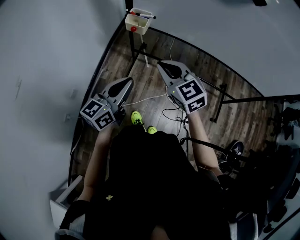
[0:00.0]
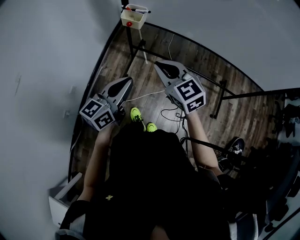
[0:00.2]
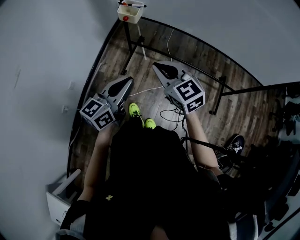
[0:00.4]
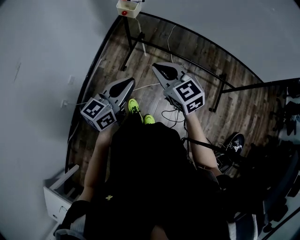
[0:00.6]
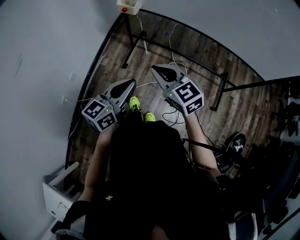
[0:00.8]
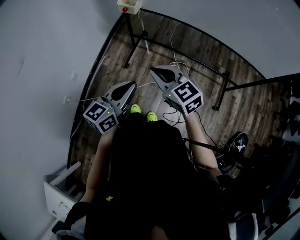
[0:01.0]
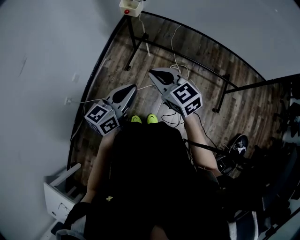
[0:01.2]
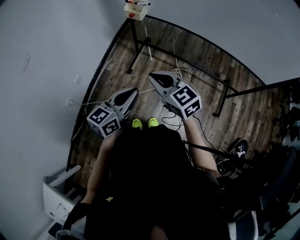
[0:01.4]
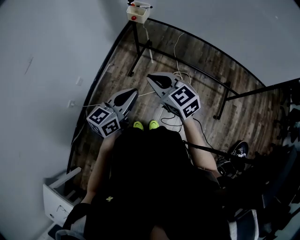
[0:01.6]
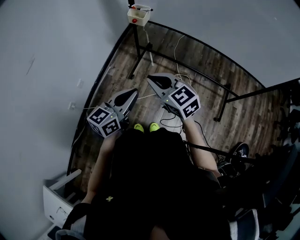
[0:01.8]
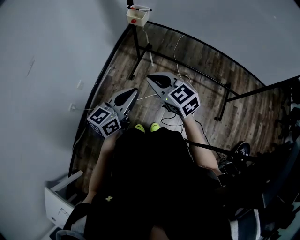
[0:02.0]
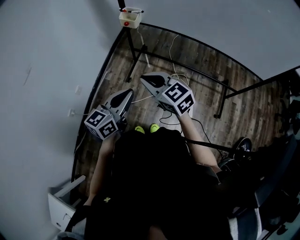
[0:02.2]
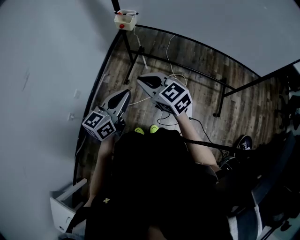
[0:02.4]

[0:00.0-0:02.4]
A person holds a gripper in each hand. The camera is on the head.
0:00.0 to 0:01.2: The left gripper shifts roughly 15 cm backward and to the right; the right gripper moves backward, about 15 cm.
0:01.2 to 0:02.4: The grippers make only small movements.

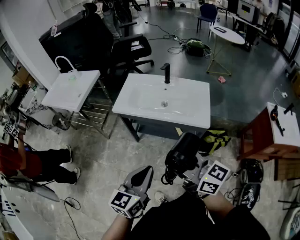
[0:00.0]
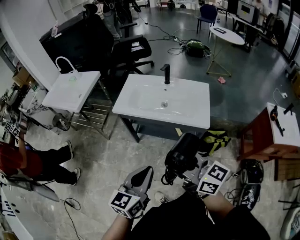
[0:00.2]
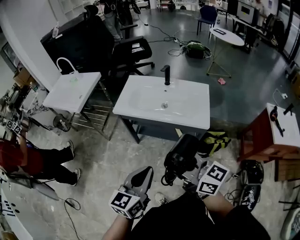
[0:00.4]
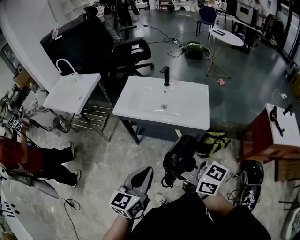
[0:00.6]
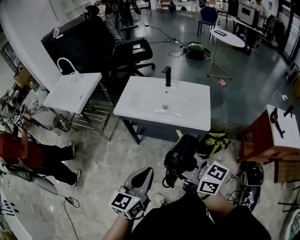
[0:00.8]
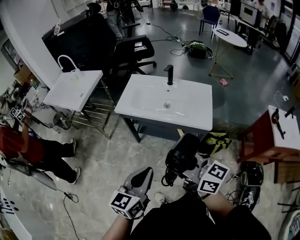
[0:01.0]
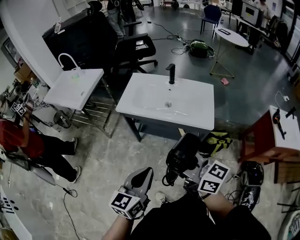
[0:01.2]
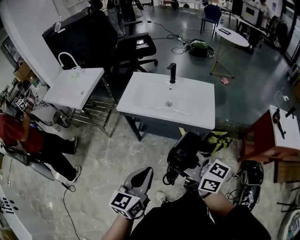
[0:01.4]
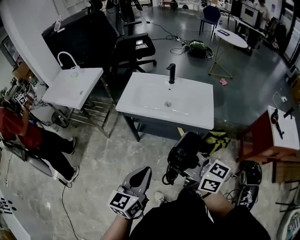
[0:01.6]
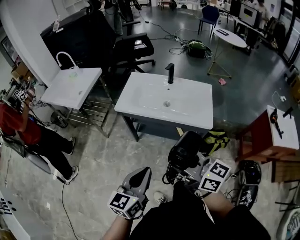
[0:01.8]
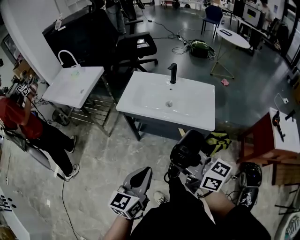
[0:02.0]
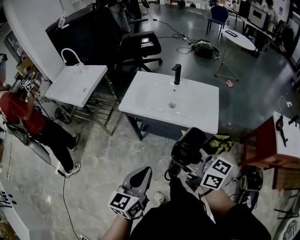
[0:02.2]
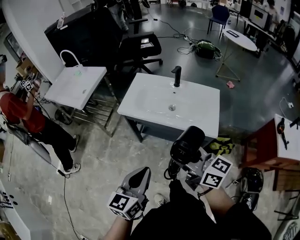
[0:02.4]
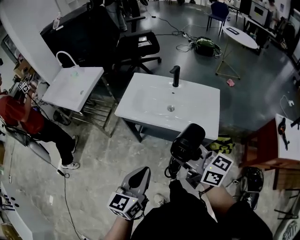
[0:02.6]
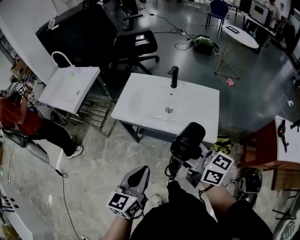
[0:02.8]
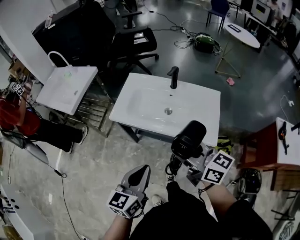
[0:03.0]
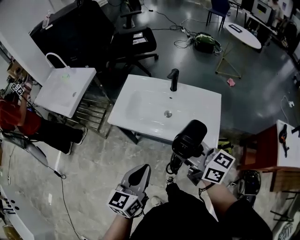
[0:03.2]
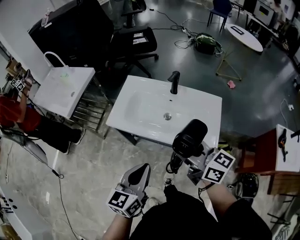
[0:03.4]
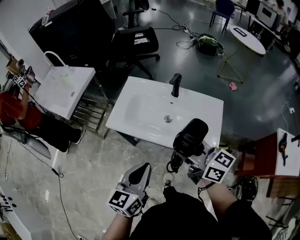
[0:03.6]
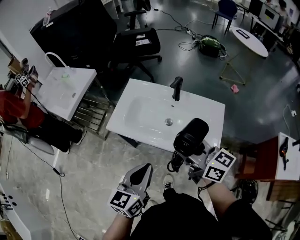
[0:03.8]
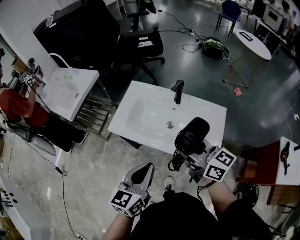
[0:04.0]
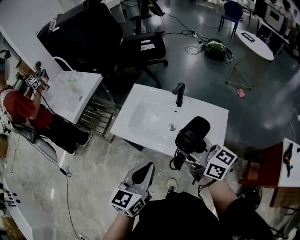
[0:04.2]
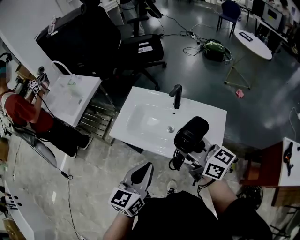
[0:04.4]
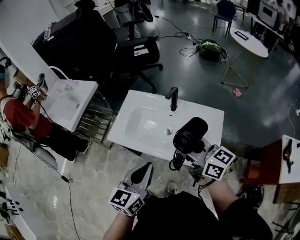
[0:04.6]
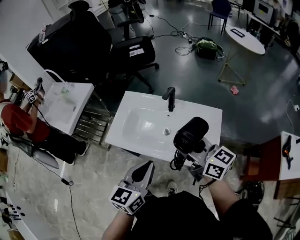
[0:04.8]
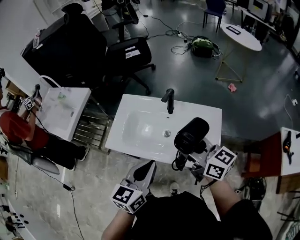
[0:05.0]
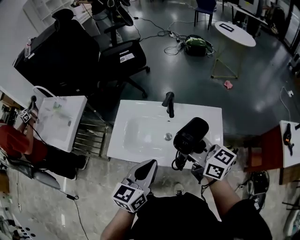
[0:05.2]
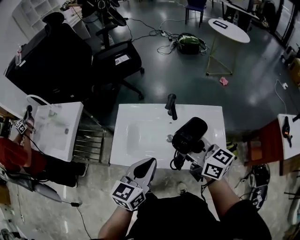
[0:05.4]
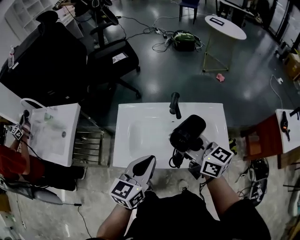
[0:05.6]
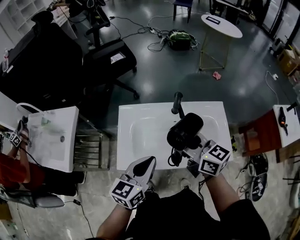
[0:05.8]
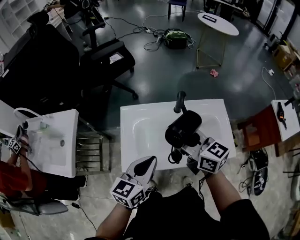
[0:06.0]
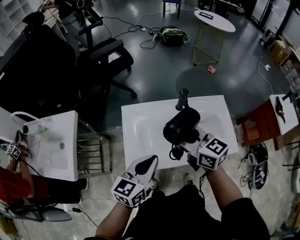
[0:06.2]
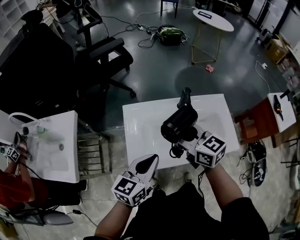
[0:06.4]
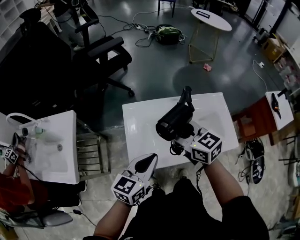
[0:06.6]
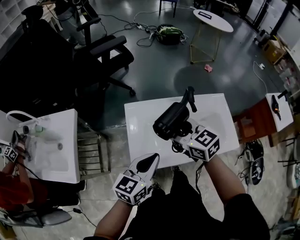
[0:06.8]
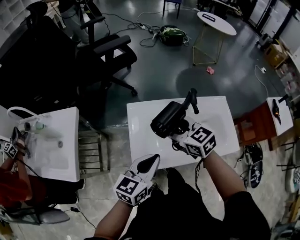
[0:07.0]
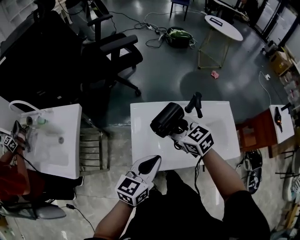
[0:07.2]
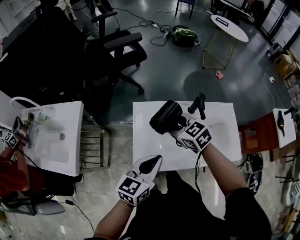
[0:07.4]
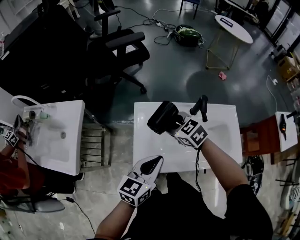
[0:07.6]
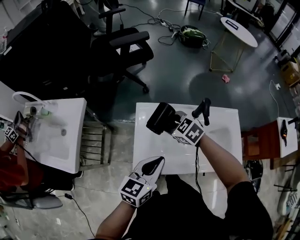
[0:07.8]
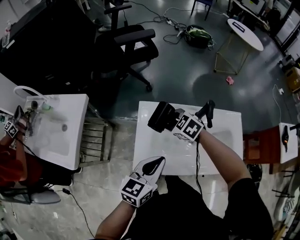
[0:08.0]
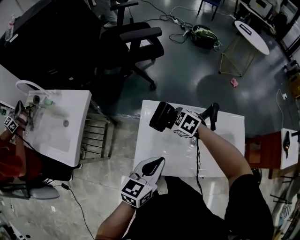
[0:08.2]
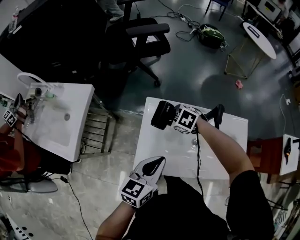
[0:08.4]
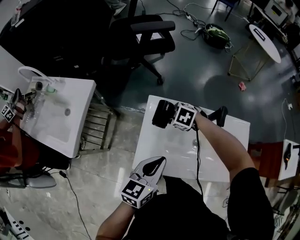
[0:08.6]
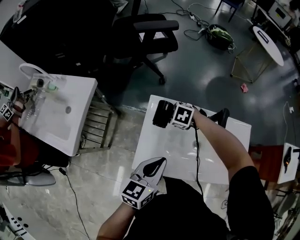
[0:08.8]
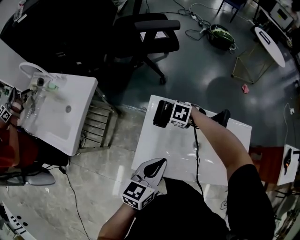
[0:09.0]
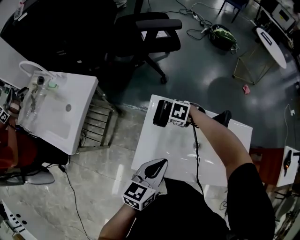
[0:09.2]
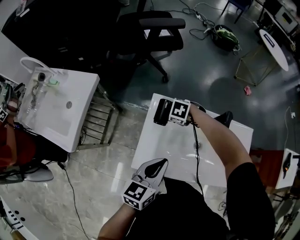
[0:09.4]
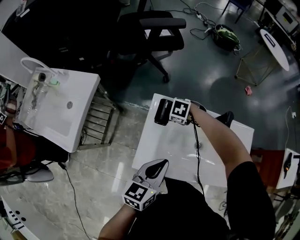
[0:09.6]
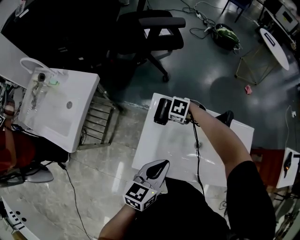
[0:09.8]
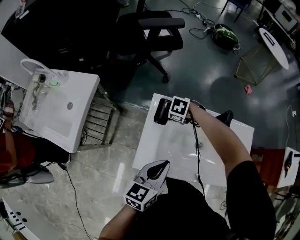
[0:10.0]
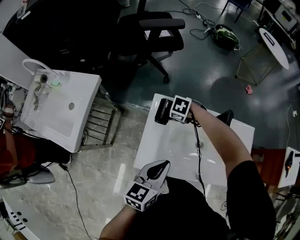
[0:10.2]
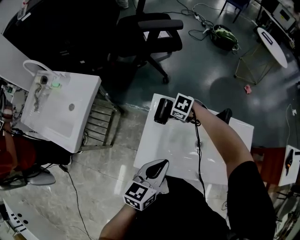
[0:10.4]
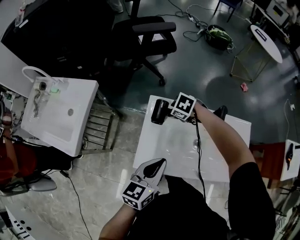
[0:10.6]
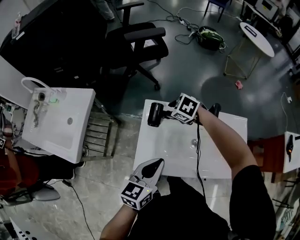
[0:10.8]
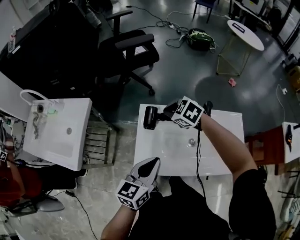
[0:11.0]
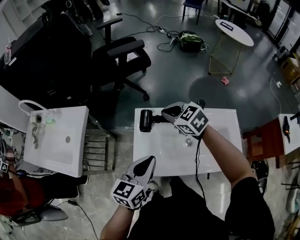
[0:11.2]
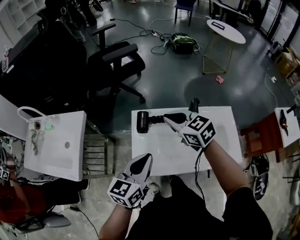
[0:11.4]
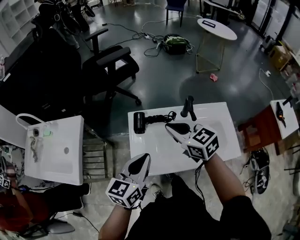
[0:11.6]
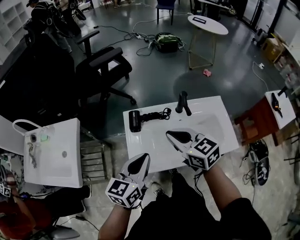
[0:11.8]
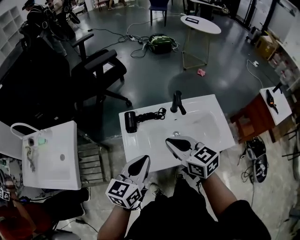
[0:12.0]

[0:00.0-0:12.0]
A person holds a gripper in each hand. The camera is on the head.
0:00.0 to 0:01.6: The grippers move only a little.
0:01.6 to 0:03.0: The right gripper travels forward and to the right by roughly 20 cm, while the left gripper is displaced forward by about 15 cm.
0:03.0 to 0:04.4: Both grippers travel together forward and to the right, roughly 15 cm.
0:04.4 to 0:06.0: The right gripper ends up roughly 20 cm from where it was, and turns by roughly 20 degrees. Meanwhile the left gripper ends up roughly 20 cm from where it was, and changes its angle by roughly 30 degrees.
0:06.0 to 0:07.6: The left gripper heads to the left, covering about 5 cm. Meanwhile the right gripper heads to the left, downward and forward, covering roughly 20 cm, and tilts its fingers about 30 degrees downward.
0:07.6 to 0:09.0: The right gripper moves downward, some 15 cm, and tilts its fingers some 40 degrees downward.
0:09.0 to 0:10.4: The grippers make only small movements.
0:10.4 to 0:12.0: The right gripper moves upward, approximately 25 cm, tilts its fingers roughly 60 degrees upward, and closes its fingers; the left gripper moves upward, some 5 cm.

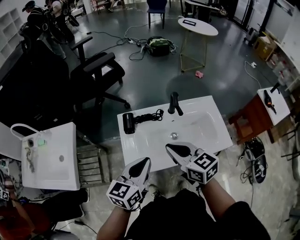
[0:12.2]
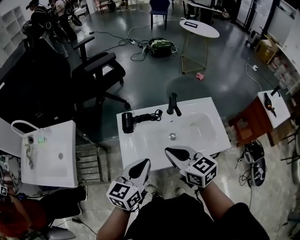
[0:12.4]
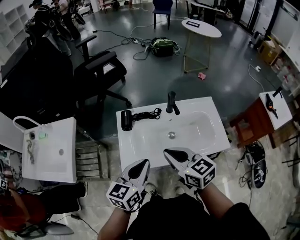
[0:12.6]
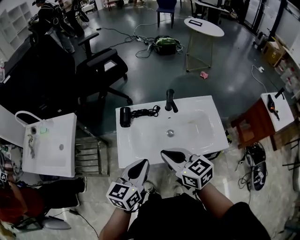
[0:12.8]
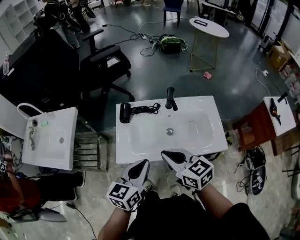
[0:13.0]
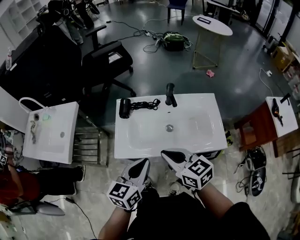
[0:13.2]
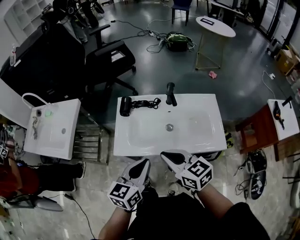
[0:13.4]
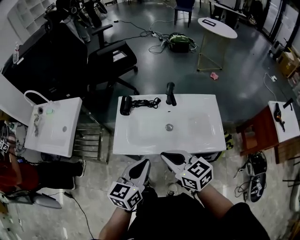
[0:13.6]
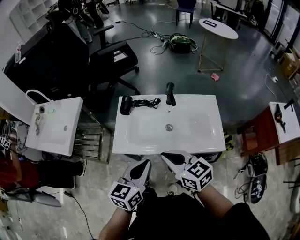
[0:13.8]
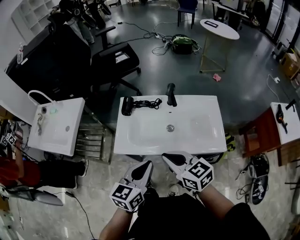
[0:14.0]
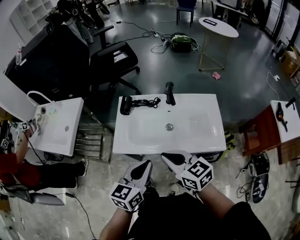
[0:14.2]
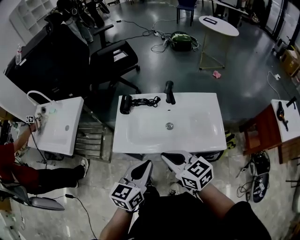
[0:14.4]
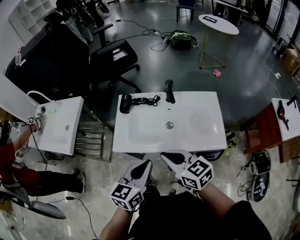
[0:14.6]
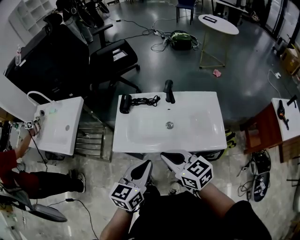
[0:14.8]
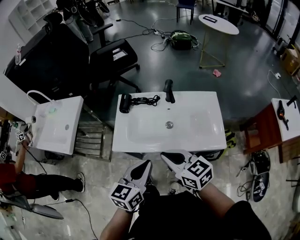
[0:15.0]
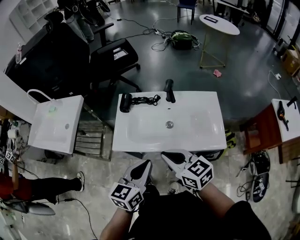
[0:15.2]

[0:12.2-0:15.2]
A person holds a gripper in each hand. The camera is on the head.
0:12.2 to 0:13.8: Both grippers travel together backward and to the right, some 15 cm.
0:13.8 to 0:15.2: The grippers move only a little.

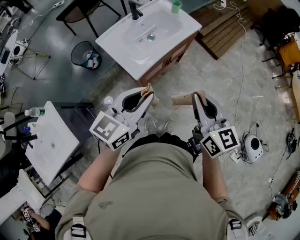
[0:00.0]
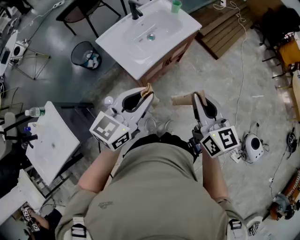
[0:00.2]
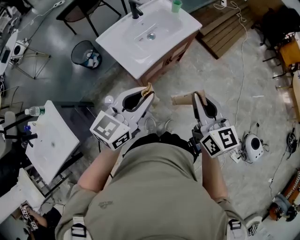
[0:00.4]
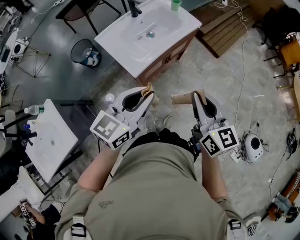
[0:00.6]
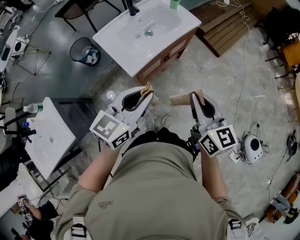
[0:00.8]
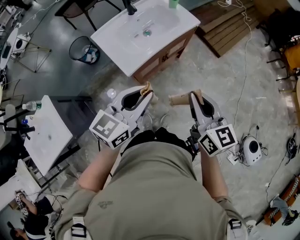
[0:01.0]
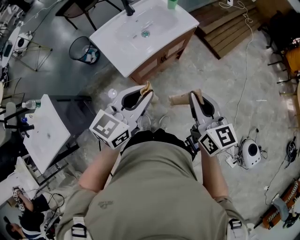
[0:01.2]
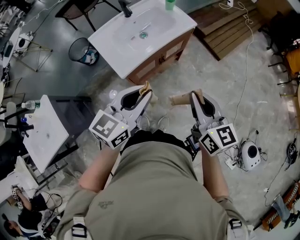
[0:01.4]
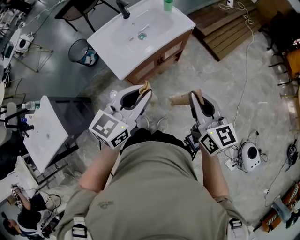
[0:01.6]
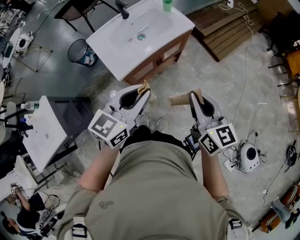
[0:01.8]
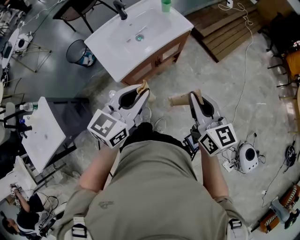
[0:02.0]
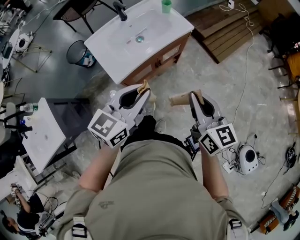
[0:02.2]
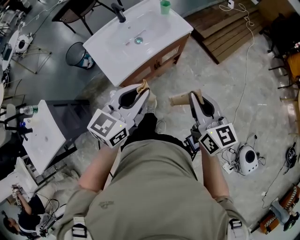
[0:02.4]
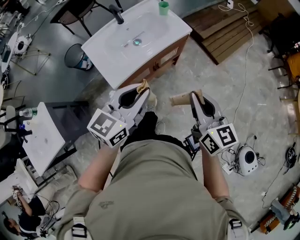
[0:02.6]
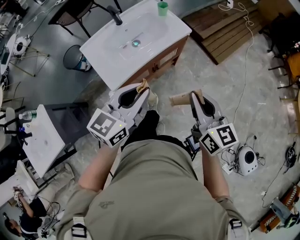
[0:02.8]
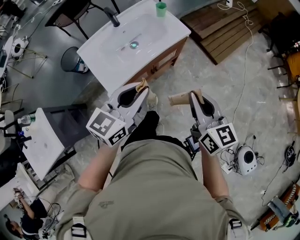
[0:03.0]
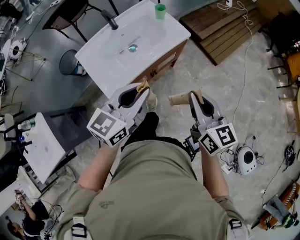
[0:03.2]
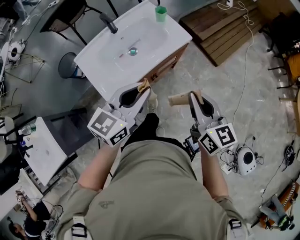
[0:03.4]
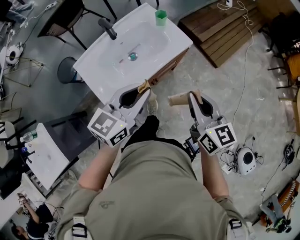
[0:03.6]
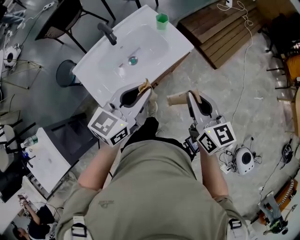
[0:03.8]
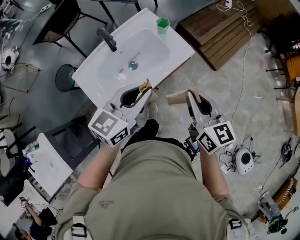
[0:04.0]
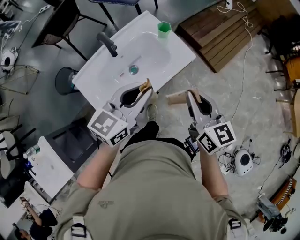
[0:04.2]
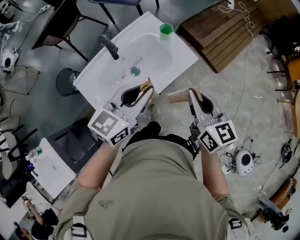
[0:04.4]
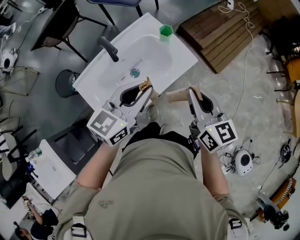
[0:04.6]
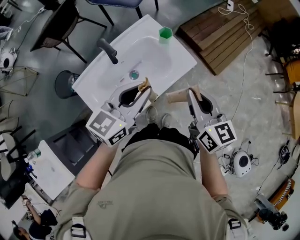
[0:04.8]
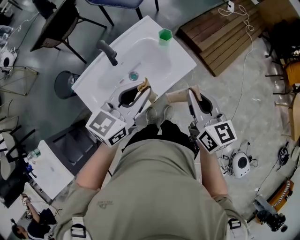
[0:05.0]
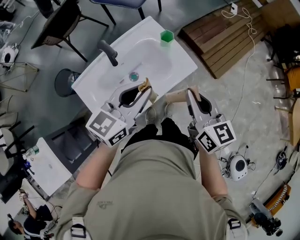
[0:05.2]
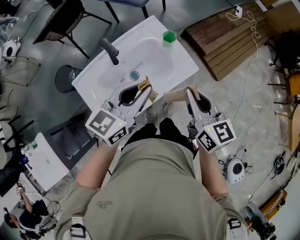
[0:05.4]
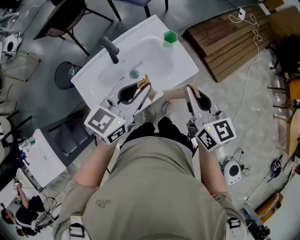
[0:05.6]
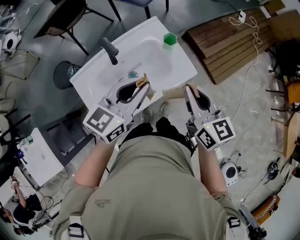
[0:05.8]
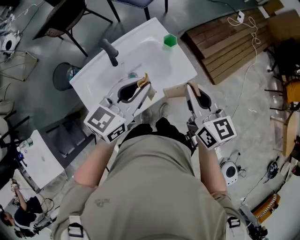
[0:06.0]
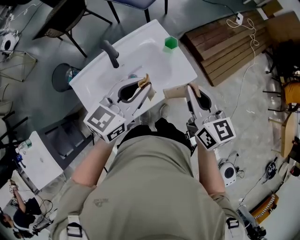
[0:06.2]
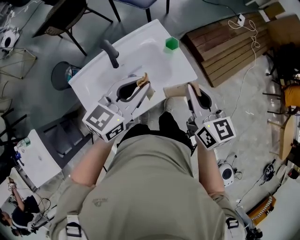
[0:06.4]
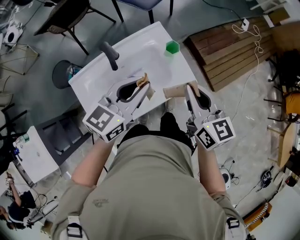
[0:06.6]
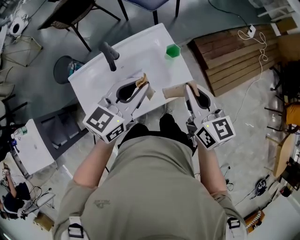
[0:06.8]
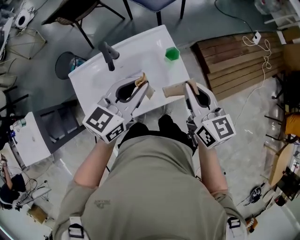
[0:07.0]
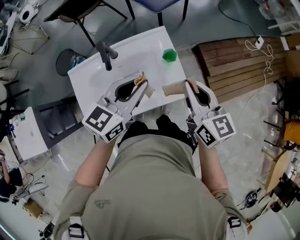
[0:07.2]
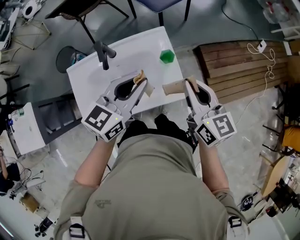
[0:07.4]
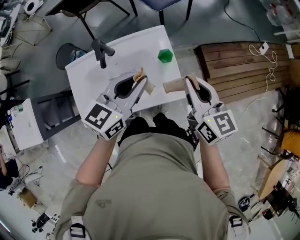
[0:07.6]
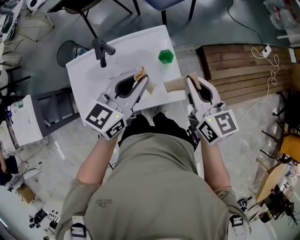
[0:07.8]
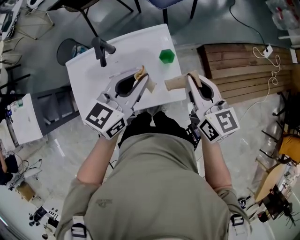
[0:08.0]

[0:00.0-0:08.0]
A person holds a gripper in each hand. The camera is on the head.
0:00.0 to 0:01.6: The grippers both shift to the right by some 10 cm.
0:01.6 to 0:03.2: The two grippers go about 15 cm forward.
0:03.2 to 0:04.8: Both grippers travel together forward, some 20 cm.
0:04.8 to 0:06.4: The grippers both shift forward by about 5 cm.
0:06.4 to 0:08.0: Both grippers travel together forward and to the right, approximately 15 cm. The right gripper changes its angle by approximately 20 degrees; the left gripper changes its angle by roughly 20 degrees.